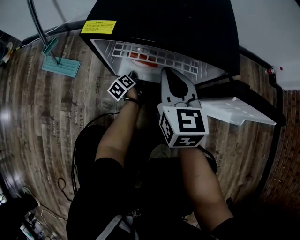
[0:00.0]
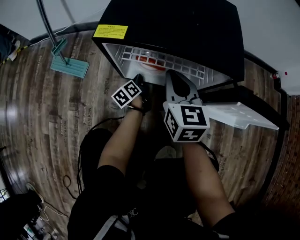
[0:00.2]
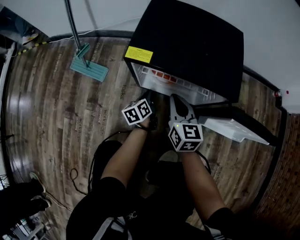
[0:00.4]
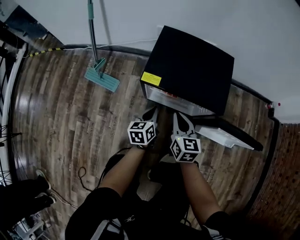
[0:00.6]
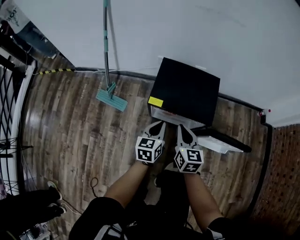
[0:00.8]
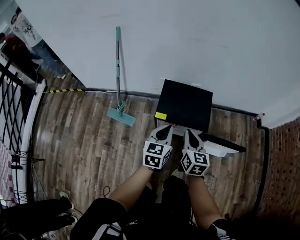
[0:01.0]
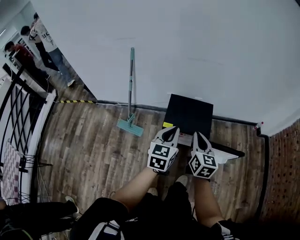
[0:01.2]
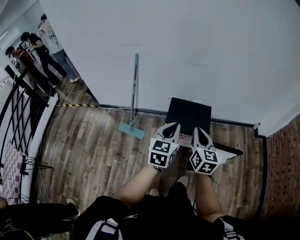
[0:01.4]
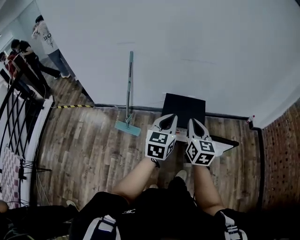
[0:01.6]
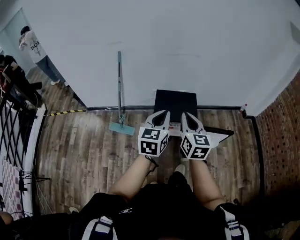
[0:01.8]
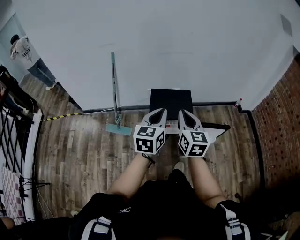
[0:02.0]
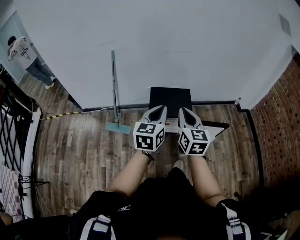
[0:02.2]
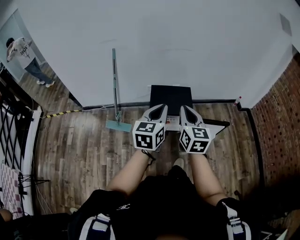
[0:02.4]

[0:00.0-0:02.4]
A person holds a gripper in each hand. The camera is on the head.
0:00.0 to 0:01.2: The right gripper is displaced upward by approximately 50 cm.
0:01.2 to 0:02.4: The right gripper moves roughly 15 cm.

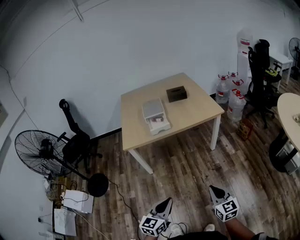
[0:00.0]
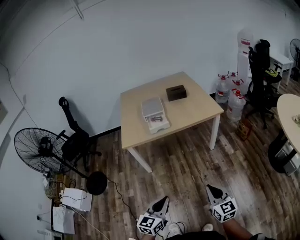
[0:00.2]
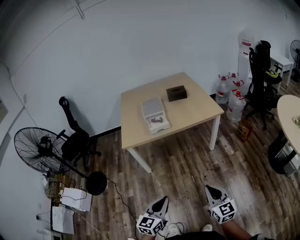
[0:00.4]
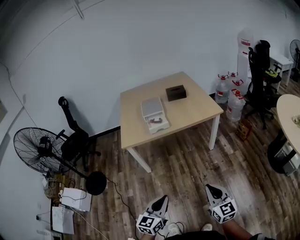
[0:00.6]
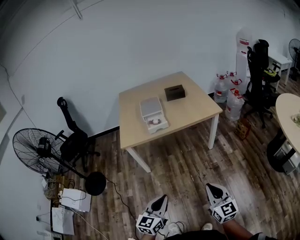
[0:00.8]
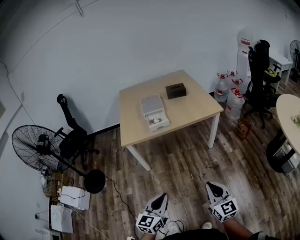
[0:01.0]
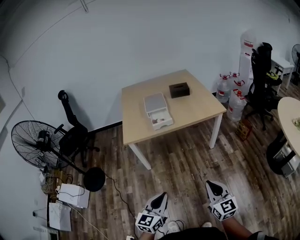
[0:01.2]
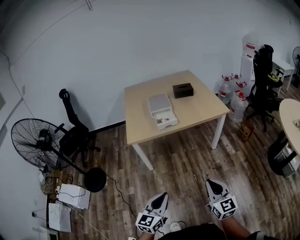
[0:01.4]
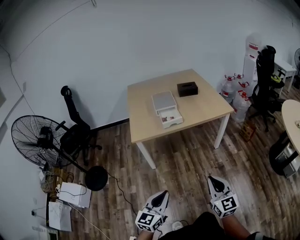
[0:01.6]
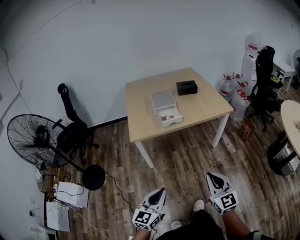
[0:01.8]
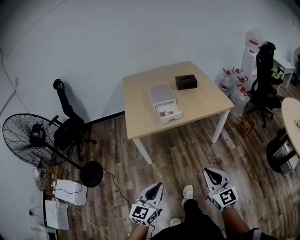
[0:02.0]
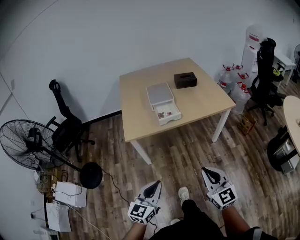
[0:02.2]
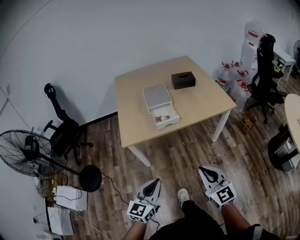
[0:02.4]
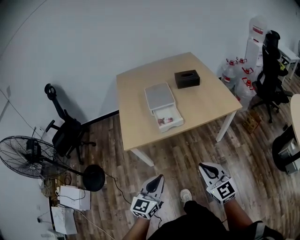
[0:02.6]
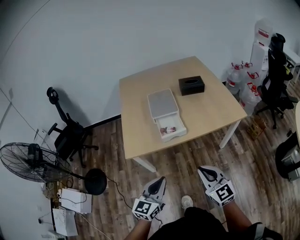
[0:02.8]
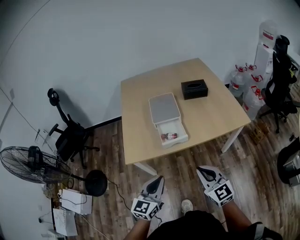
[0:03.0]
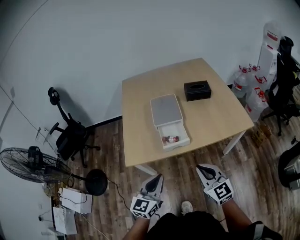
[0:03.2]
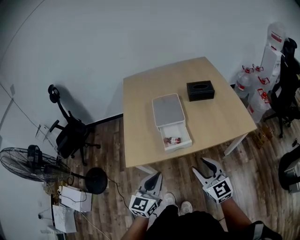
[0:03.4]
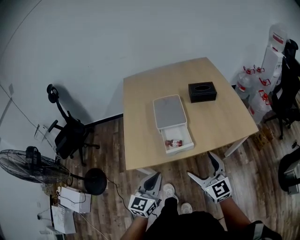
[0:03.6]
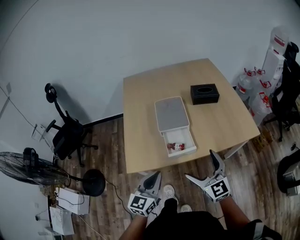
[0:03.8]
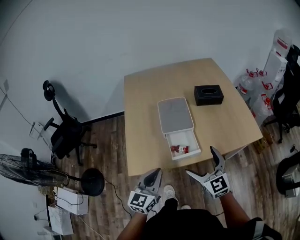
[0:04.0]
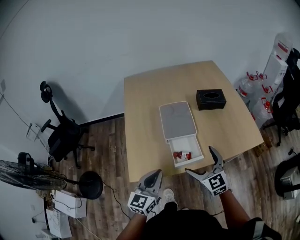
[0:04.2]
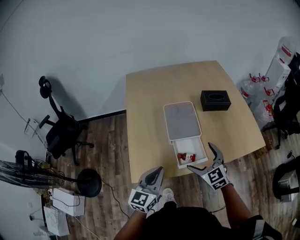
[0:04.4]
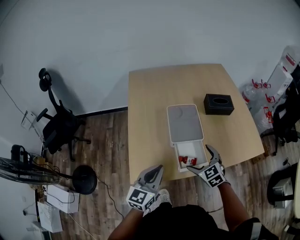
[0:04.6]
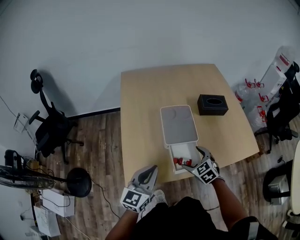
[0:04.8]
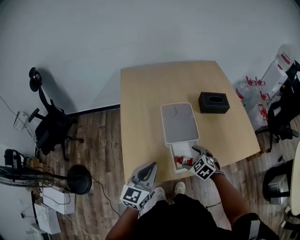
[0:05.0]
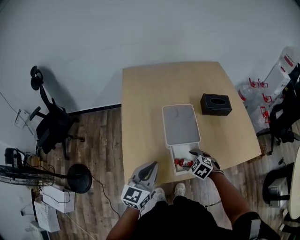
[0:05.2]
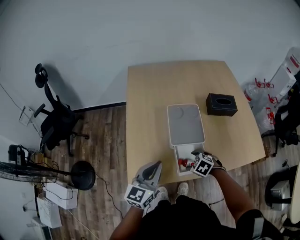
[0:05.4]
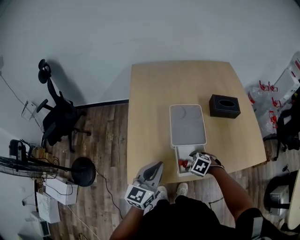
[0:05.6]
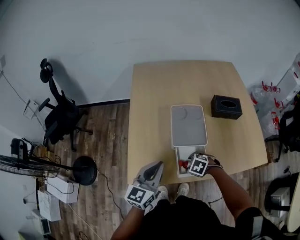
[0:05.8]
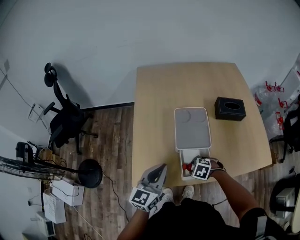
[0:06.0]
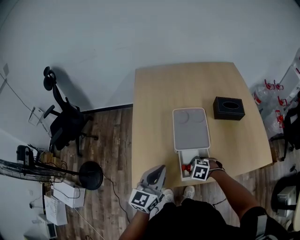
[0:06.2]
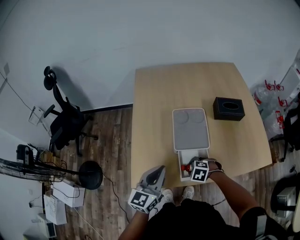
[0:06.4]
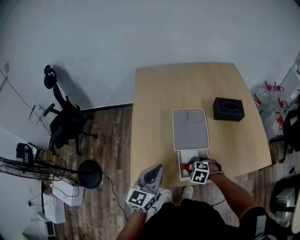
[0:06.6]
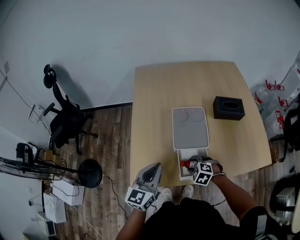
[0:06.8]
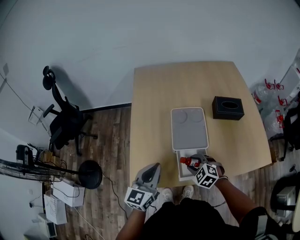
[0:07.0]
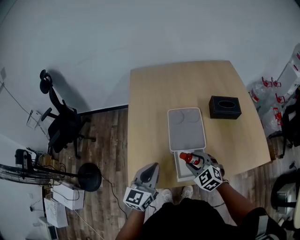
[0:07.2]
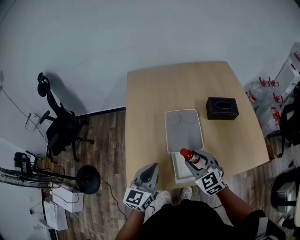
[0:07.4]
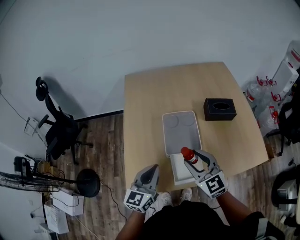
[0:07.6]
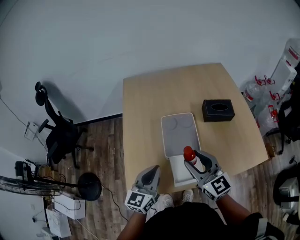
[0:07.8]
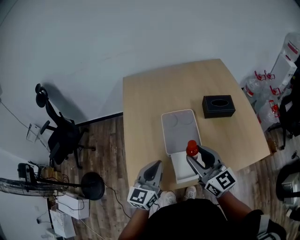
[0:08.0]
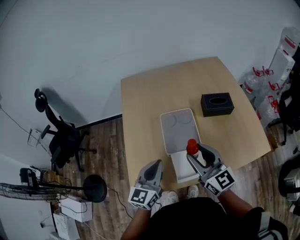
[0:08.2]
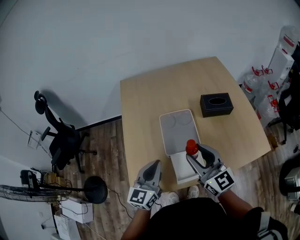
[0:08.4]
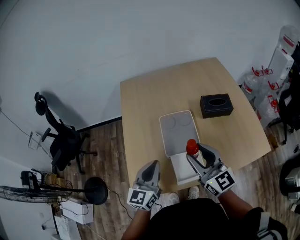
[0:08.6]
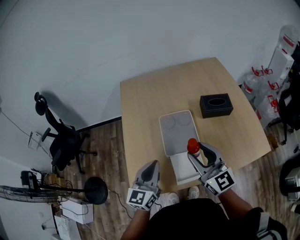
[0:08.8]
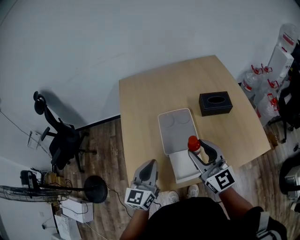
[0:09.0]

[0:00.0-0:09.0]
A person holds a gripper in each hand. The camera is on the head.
0:00.0 to 0:01.6: The left gripper is displaced to the left by about 10 cm. Meanwhile the right gripper goes about 15 cm to the left and upward.
0:01.6 to 0:03.0: Both grippers travel together forward, roughly 30 cm.
0:03.0 to 0:04.4: The left gripper heads forward and to the left, covering about 25 cm, while the right gripper heads forward, covering roughly 25 cm, and opens its fingers.
0:04.4 to 0:06.0: The left gripper moves about 10 cm. Meanwhile the right gripper is displaced downward by about 20 cm, angles its fingers downward, by about 50 degrees, and closes up.
0:06.0 to 0:07.6: The right gripper travels upward by approximately 25 cm, and angles its fingers upward, by approximately 60 degrees.
0:07.6 to 0:09.0: The right gripper shifts approximately 5 cm upward.

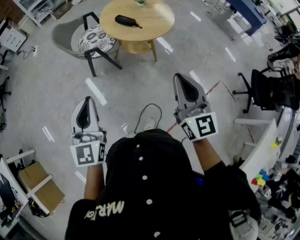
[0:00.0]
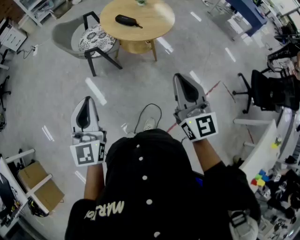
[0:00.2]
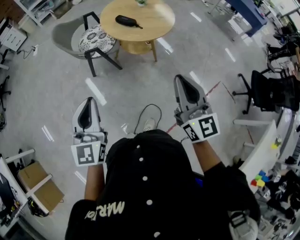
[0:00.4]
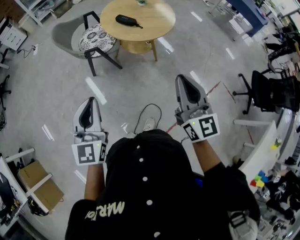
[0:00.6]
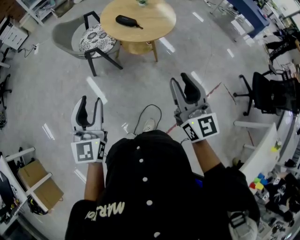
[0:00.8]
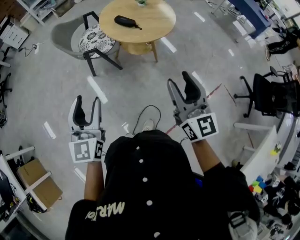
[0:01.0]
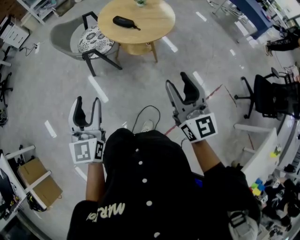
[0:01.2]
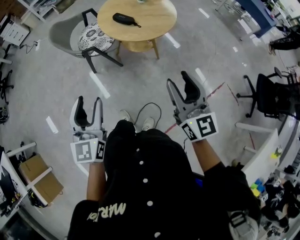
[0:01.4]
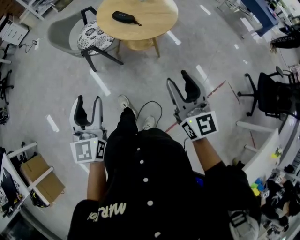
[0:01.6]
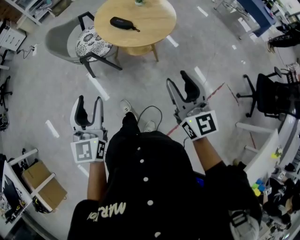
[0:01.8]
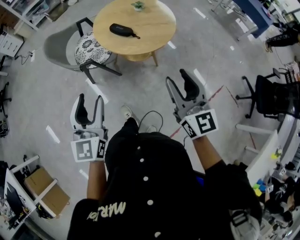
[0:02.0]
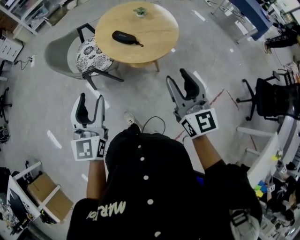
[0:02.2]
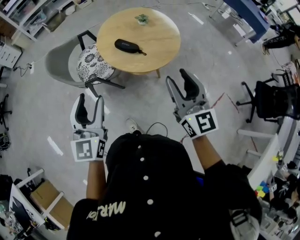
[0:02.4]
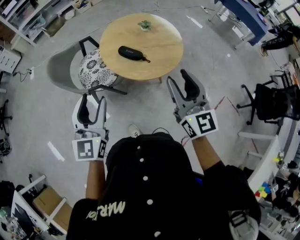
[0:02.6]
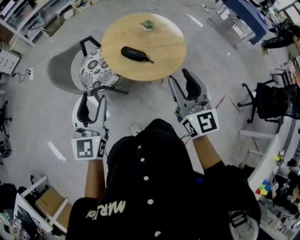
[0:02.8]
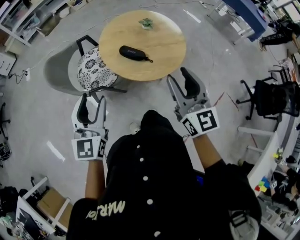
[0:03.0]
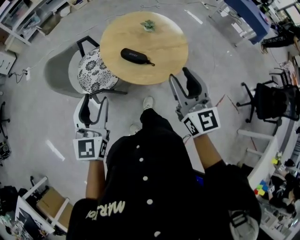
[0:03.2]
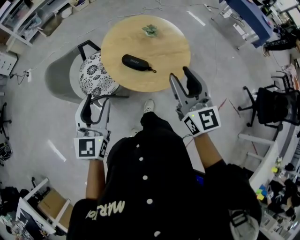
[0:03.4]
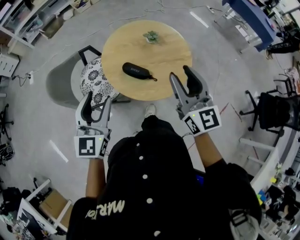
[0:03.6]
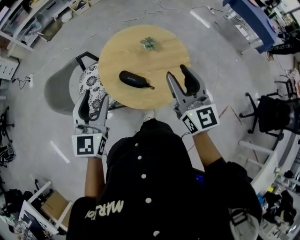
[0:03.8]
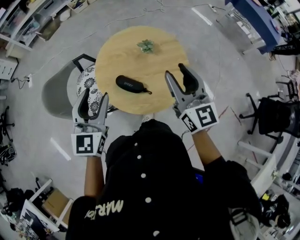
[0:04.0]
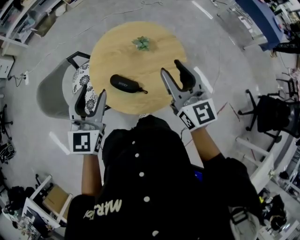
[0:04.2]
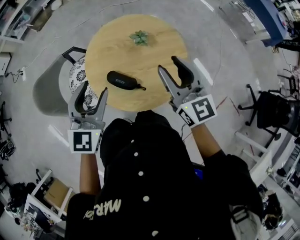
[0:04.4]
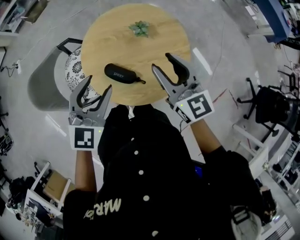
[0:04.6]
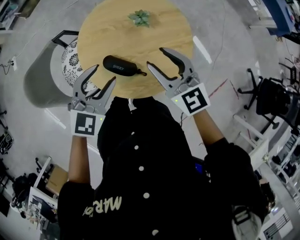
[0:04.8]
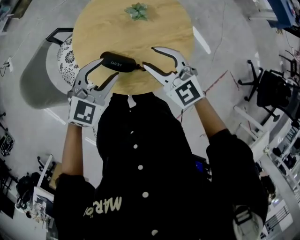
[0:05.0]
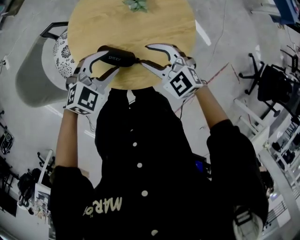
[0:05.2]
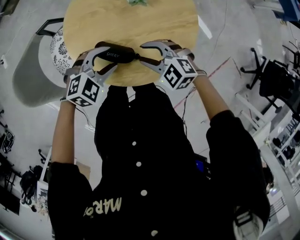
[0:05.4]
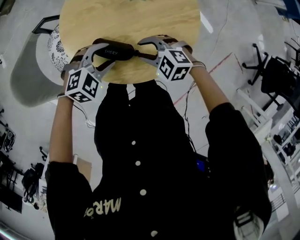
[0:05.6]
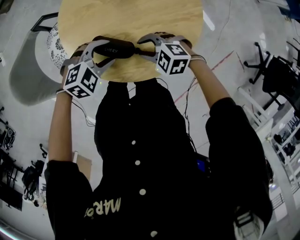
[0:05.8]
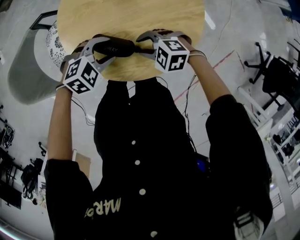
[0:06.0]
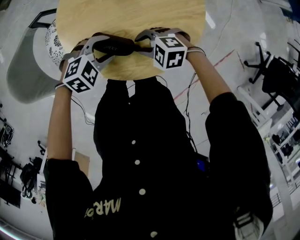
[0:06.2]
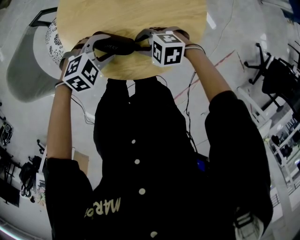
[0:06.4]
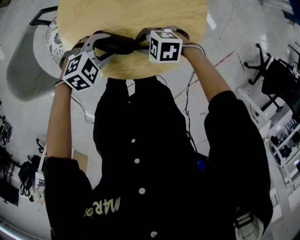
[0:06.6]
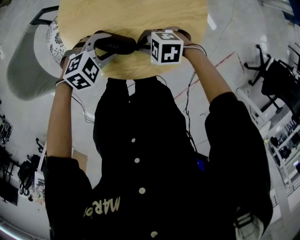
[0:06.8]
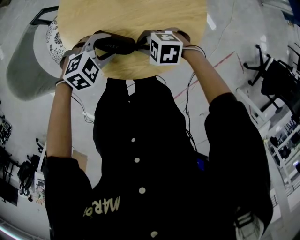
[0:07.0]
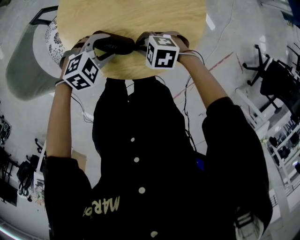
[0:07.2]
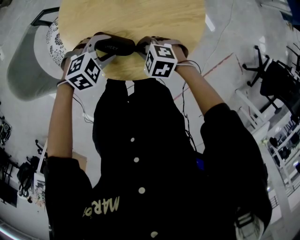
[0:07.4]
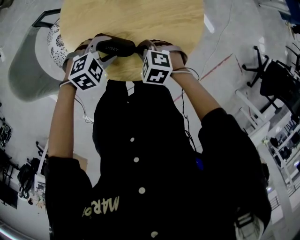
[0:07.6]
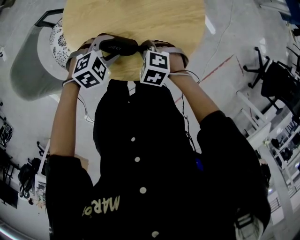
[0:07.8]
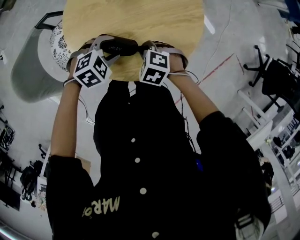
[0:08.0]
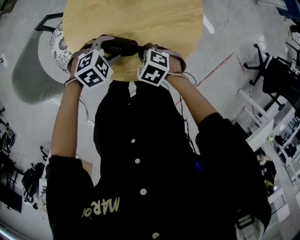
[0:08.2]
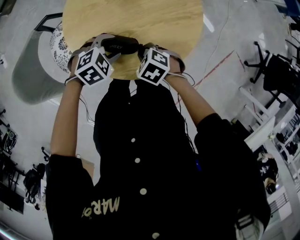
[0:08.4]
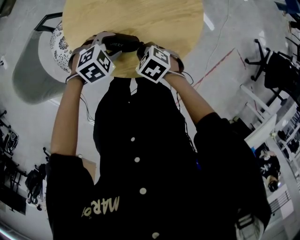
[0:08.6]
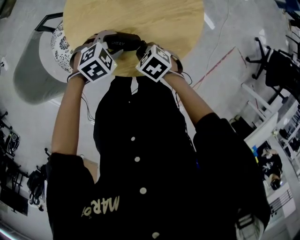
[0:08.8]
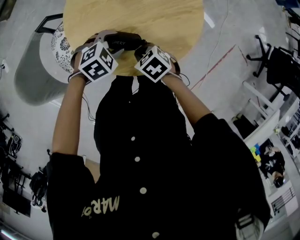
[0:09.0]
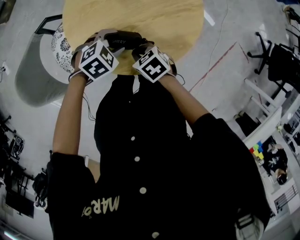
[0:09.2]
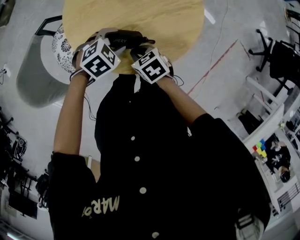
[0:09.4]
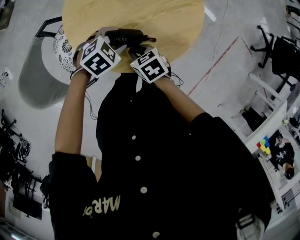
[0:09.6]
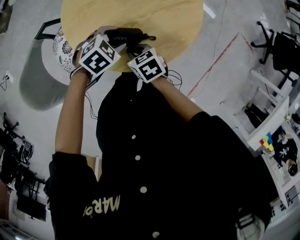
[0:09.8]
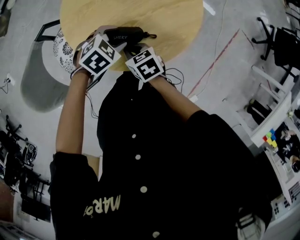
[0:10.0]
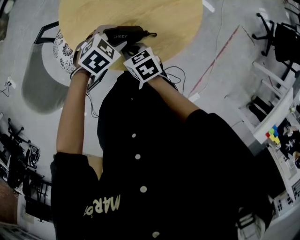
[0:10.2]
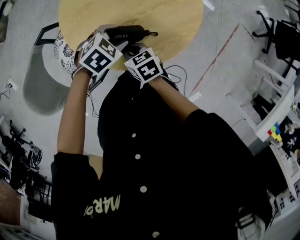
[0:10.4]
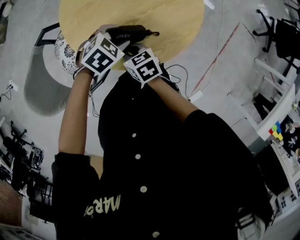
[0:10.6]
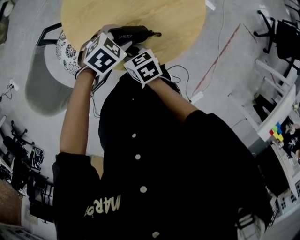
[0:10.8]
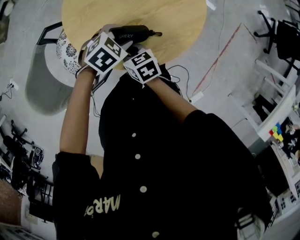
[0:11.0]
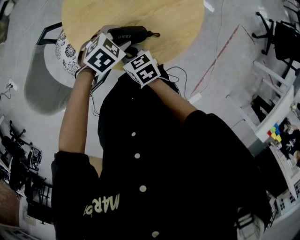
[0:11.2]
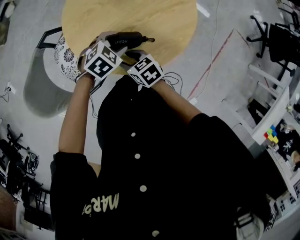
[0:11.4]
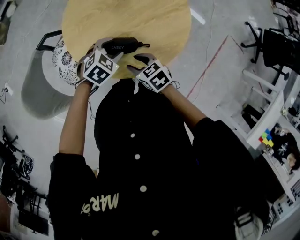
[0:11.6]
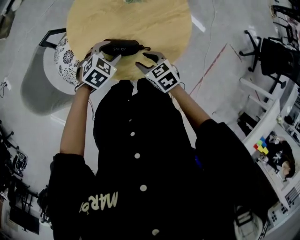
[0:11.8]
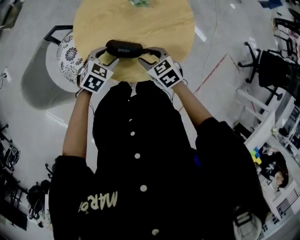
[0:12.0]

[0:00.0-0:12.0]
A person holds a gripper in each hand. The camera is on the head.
0:00.0 to 0:01.6: The grippers both shift forward and to the right by about 10 cm. The right gripper opens, while the left gripper opens up.
0:01.6 to 0:03.0: The left gripper goes some 30 cm forward. The right gripper shifts some 30 cm forward and to the left.
0:03.0 to 0:04.4: The right gripper shifts roughly 30 cm forward, while the left gripper goes about 35 cm forward and to the right, and changes its angle by some 20 degrees.
0:04.4 to 0:06.0: The grippers both shift downward by some 35 cm. The left gripper angles its fingers downward, by roughly 40 degrees, while the right gripper tips its fingers downward by about 50 degrees.
0:06.0 to 0:07.6: The right gripper swivels approximately 20 degrees, and closes.
0:07.6 to 0:09.0: The right gripper moves approximately 5 cm, and changes its angle by roughly 40 degrees.
0:09.0 to 0:10.4: The right gripper changes place by roughly 5 cm, and changes its angle by approximately 30 degrees.
0:10.4 to 0:12.0: The right gripper changes place by roughly 10 cm, rotates approximately 30 degrees, and opens, while the left gripper moves approximately 5 cm, and turns by about 20 degrees.
